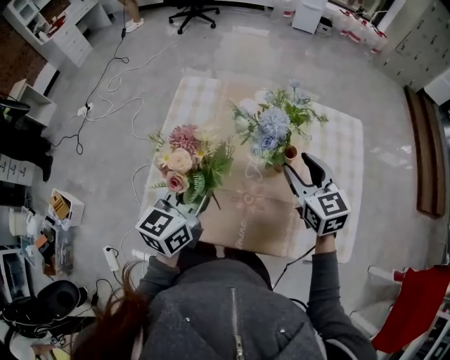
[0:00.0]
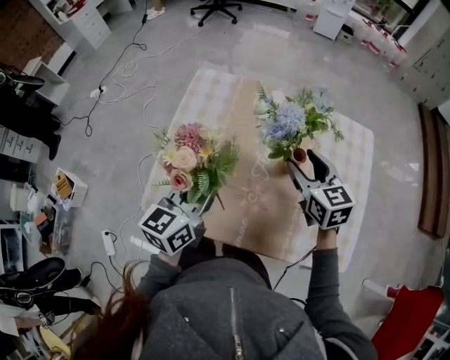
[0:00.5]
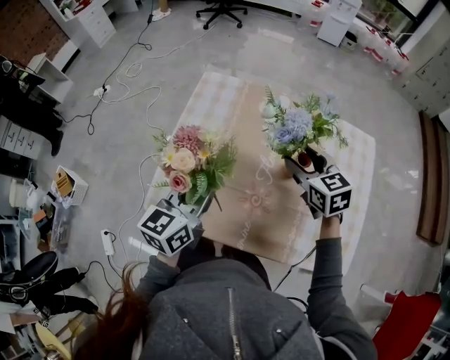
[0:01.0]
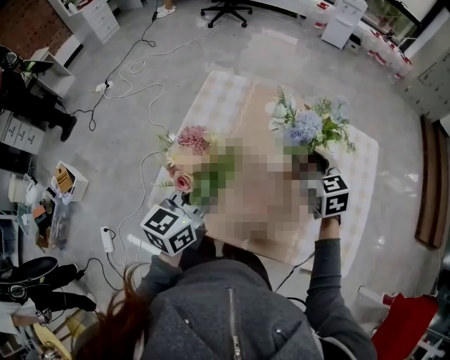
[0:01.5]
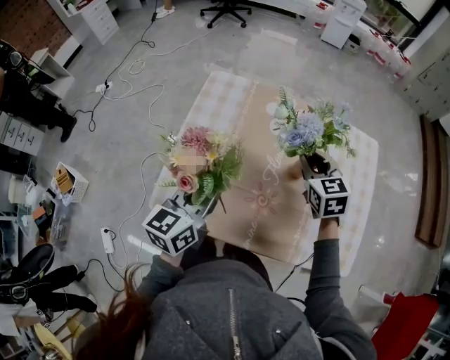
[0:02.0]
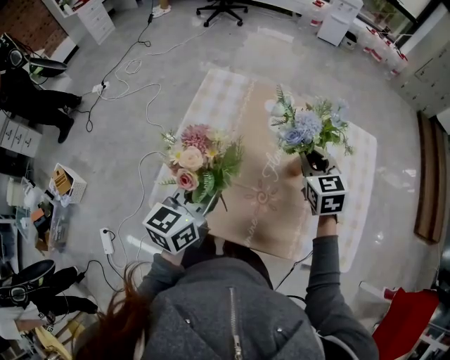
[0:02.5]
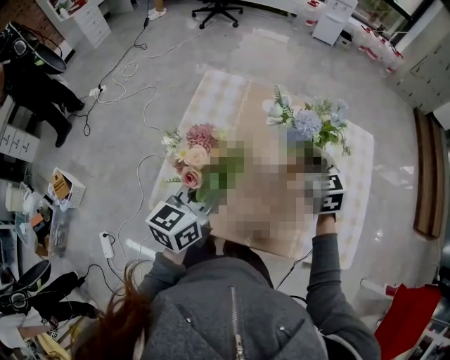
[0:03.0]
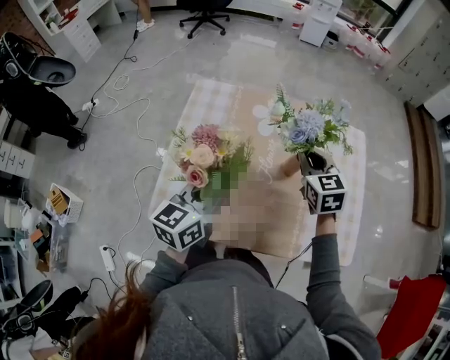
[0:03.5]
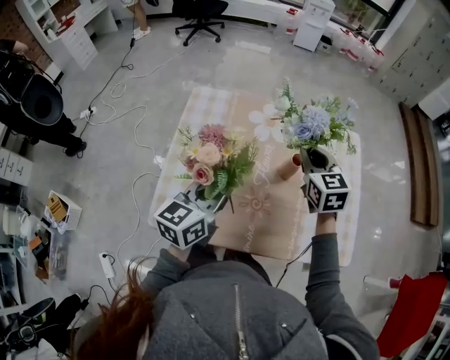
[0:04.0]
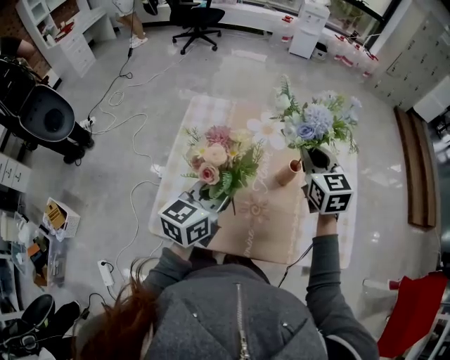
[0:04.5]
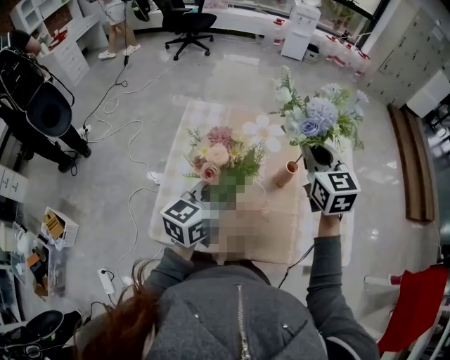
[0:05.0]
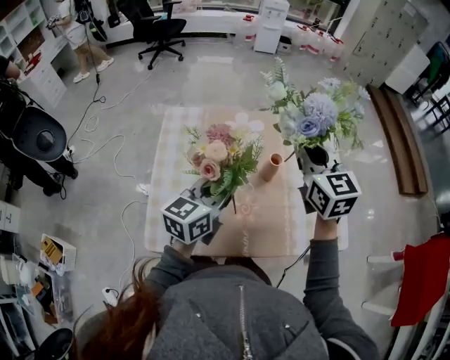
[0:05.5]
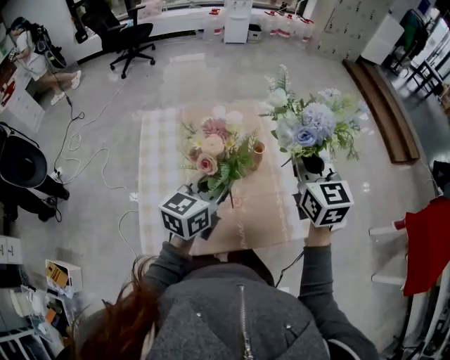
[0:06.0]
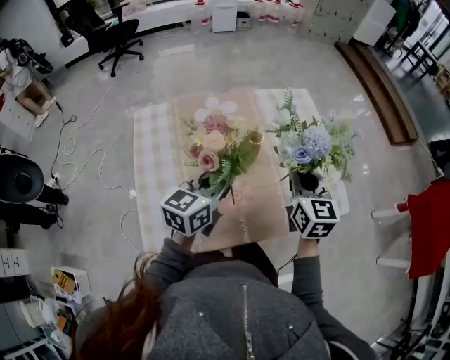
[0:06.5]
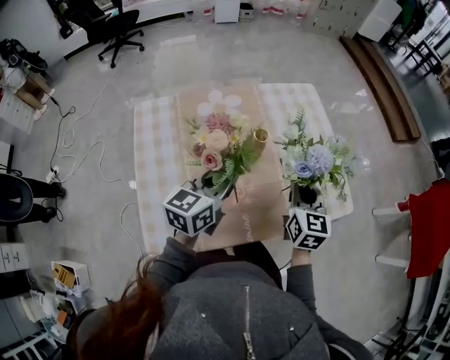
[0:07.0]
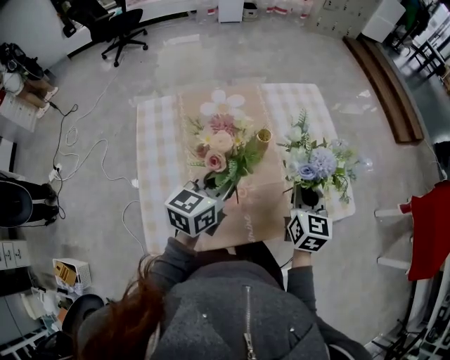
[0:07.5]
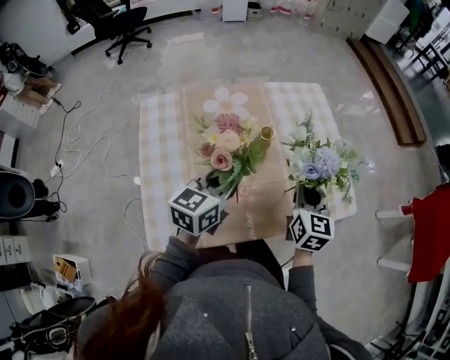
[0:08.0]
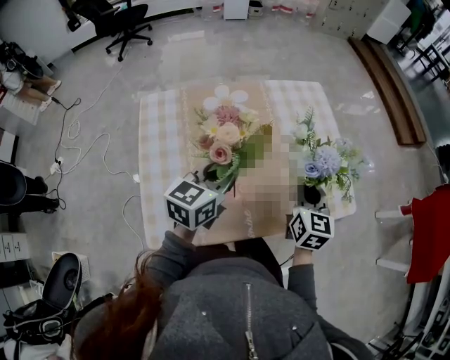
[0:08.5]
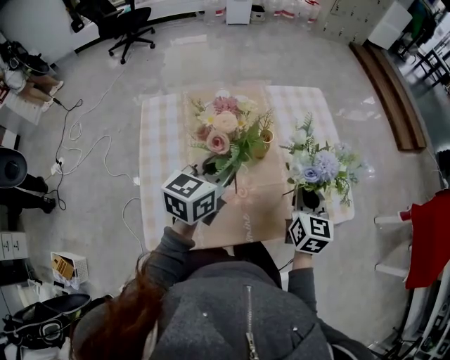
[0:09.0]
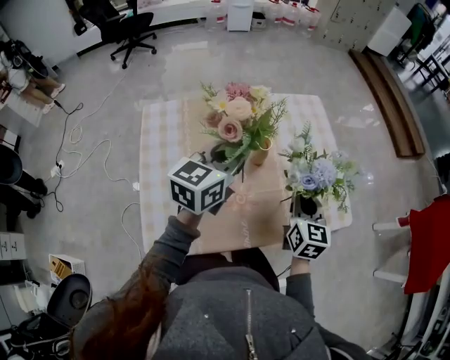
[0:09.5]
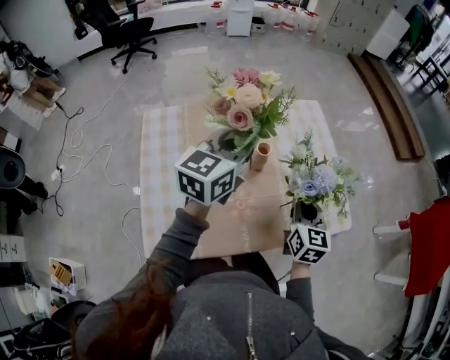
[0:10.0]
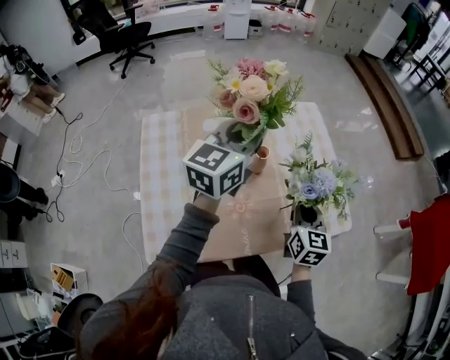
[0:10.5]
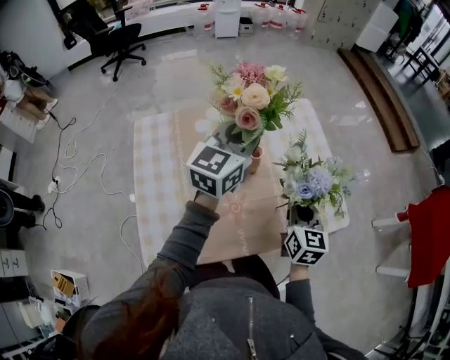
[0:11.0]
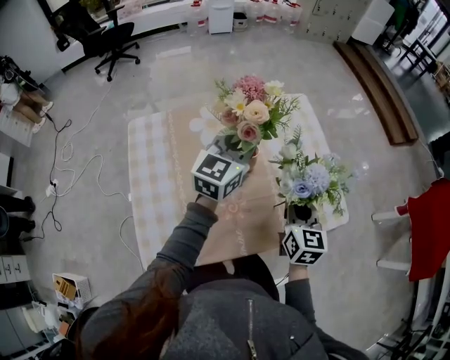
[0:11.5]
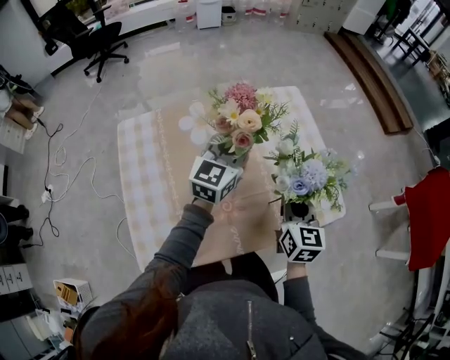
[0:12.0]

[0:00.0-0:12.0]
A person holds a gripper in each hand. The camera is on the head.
0:00.0 to 0:02.0: The right gripper shifts approximately 5 cm forward, and closes its fingers.
0:02.0 to 0:04.0: The right gripper moves about 5 cm.
0:04.0 to 0:06.0: The right gripper travels upward, backward and to the right by approximately 15 cm, and changes its angle by some 20 degrees. The left gripper heads to the right, covering about 10 cm.
0:06.0 to 0:08.0: The right gripper shifts approximately 15 cm downward and to the right, and rotates approximately 20 degrees.
0:08.0 to 0:10.0: The left gripper heads upward and forward, covering roughly 15 cm.
0:10.0 to 0:12.0: The left gripper goes about 10 cm downward and forward.

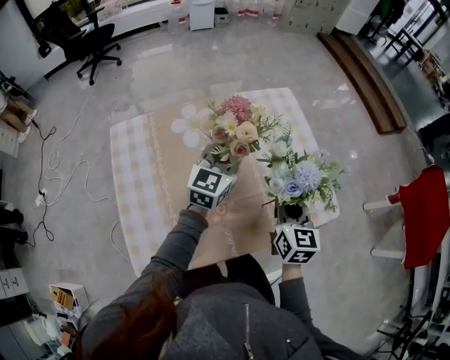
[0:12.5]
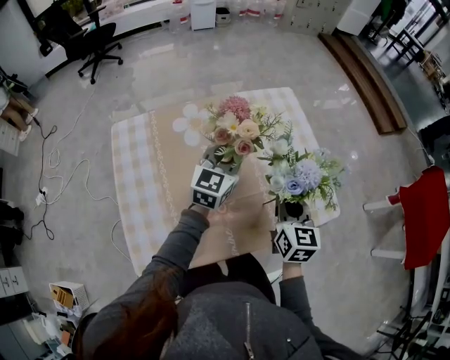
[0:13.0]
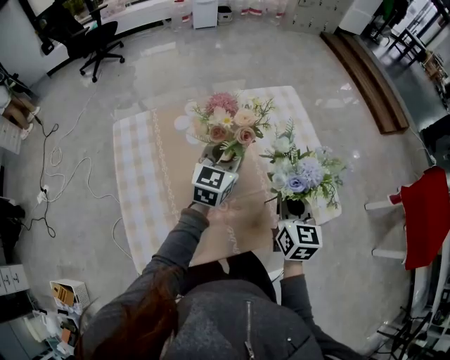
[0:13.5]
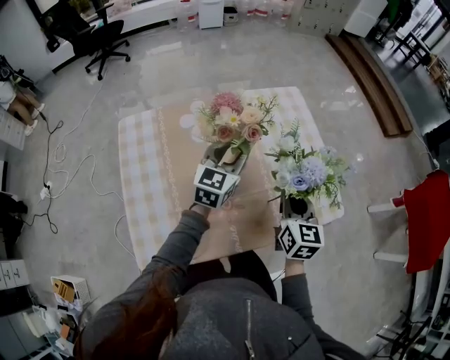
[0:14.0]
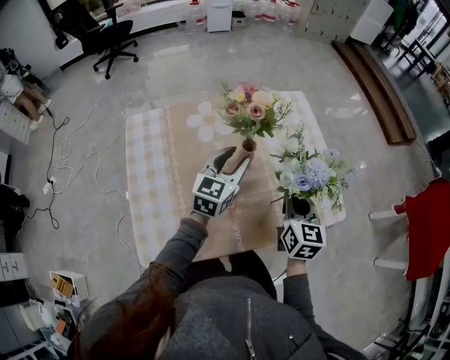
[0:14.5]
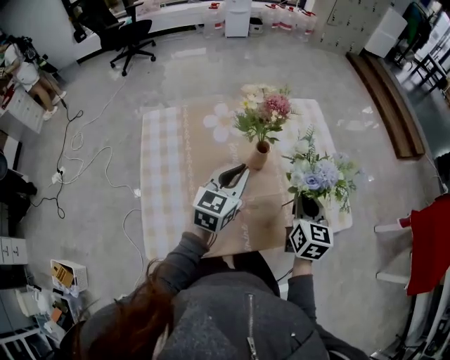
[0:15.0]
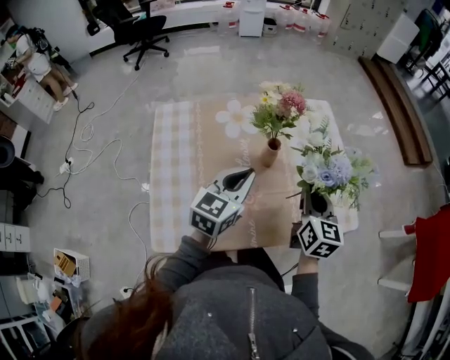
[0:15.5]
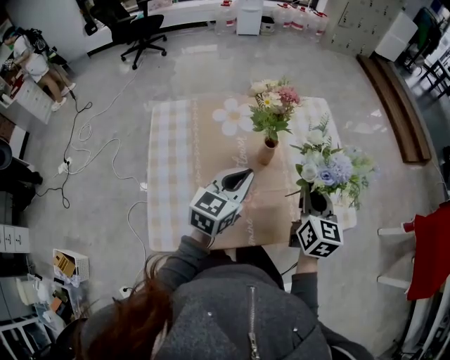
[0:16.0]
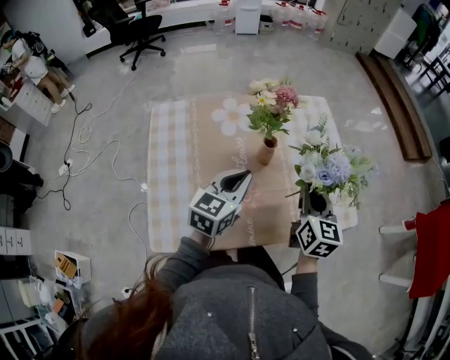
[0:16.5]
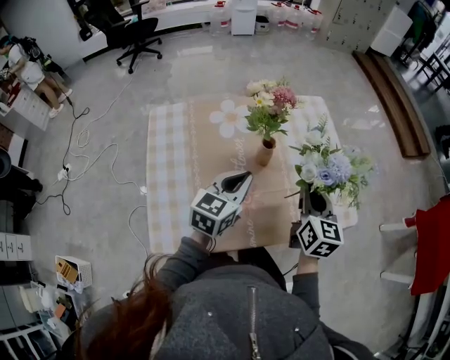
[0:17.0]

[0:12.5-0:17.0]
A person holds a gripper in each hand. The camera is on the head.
0:12.5 to 0:14.5: The left gripper moves roughly 5 cm, and opens its fingers.
0:14.5 to 0:17.0: The left gripper goes approximately 10 cm backward, and closes.

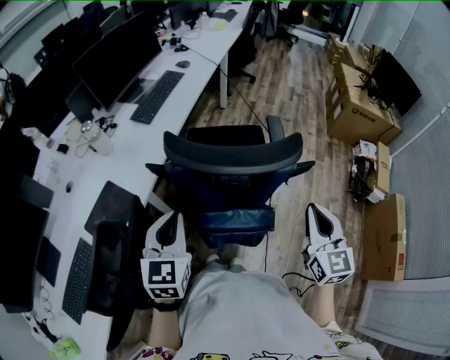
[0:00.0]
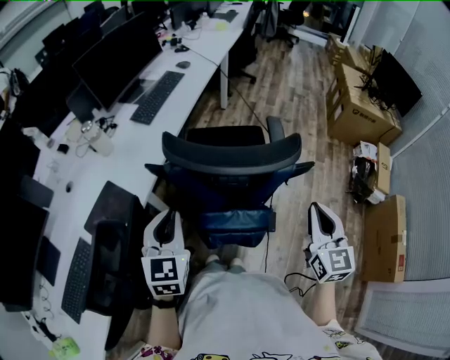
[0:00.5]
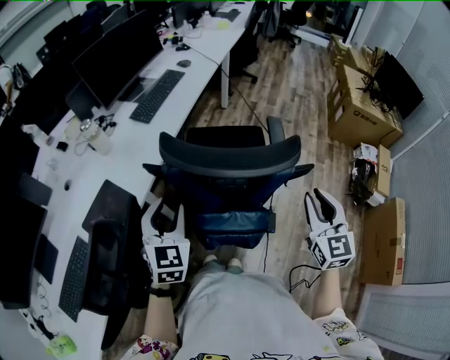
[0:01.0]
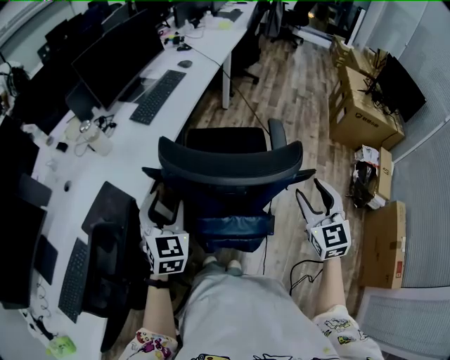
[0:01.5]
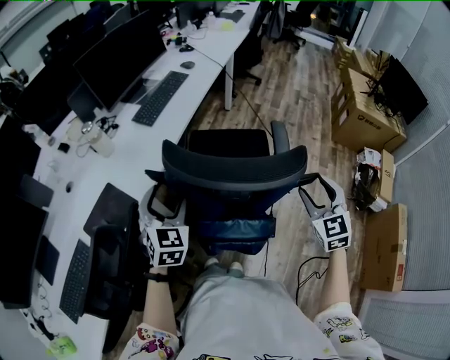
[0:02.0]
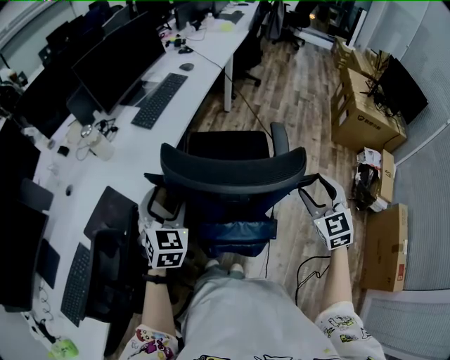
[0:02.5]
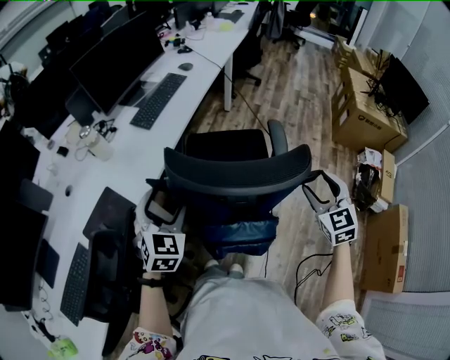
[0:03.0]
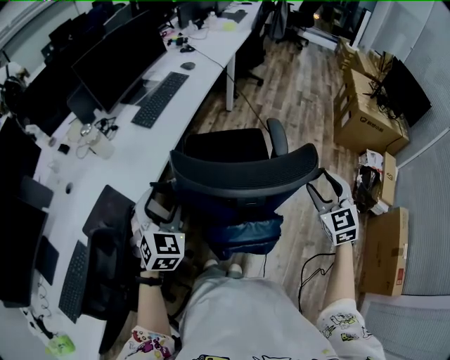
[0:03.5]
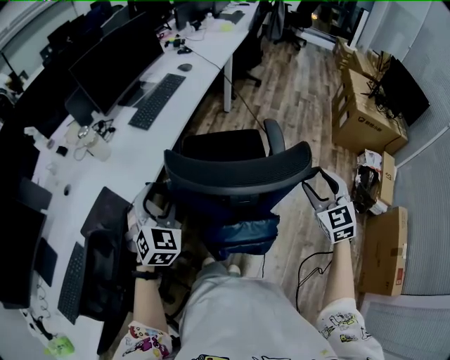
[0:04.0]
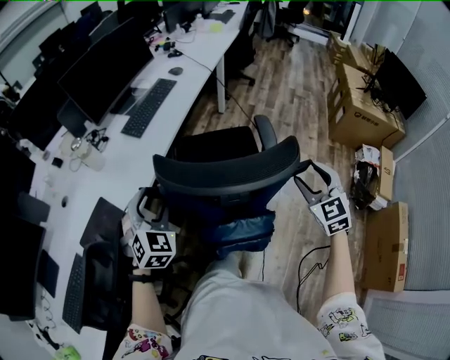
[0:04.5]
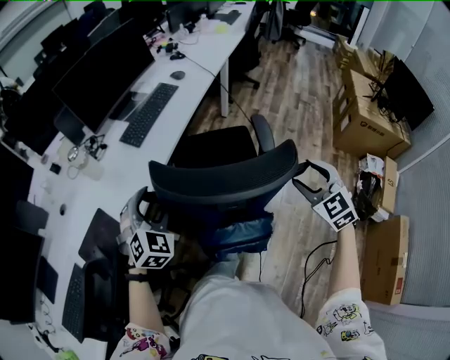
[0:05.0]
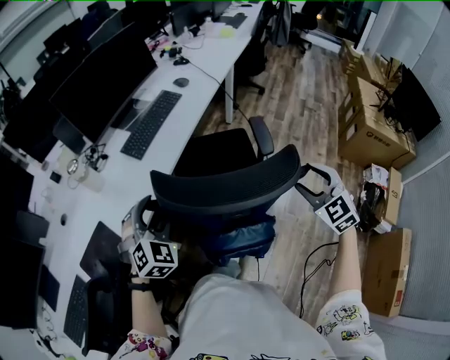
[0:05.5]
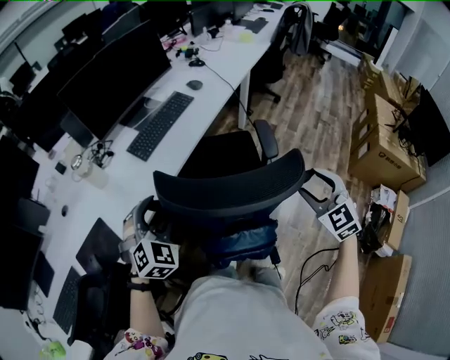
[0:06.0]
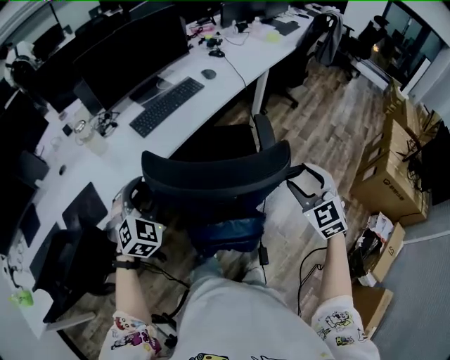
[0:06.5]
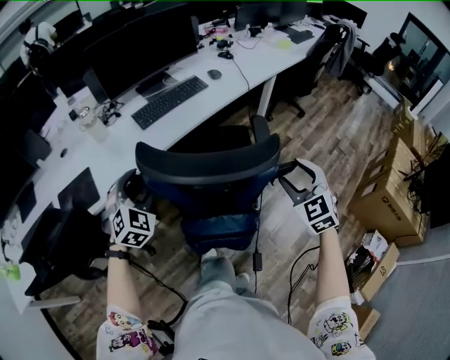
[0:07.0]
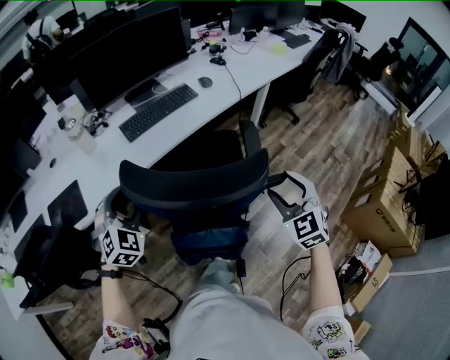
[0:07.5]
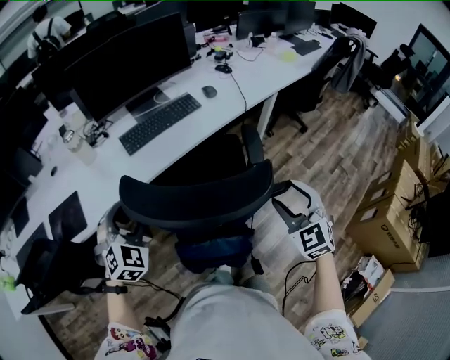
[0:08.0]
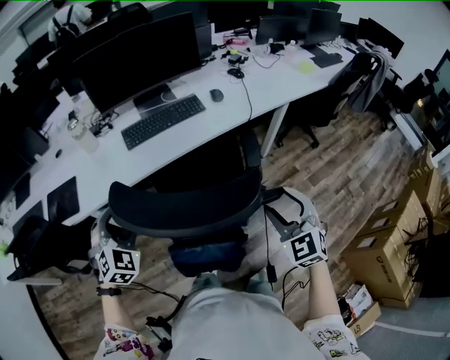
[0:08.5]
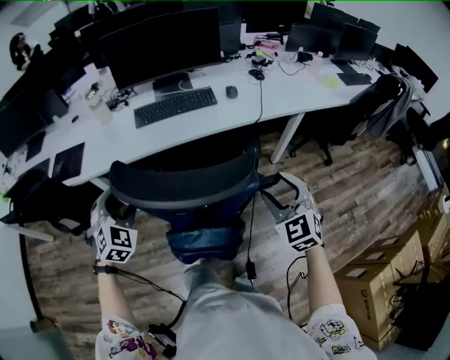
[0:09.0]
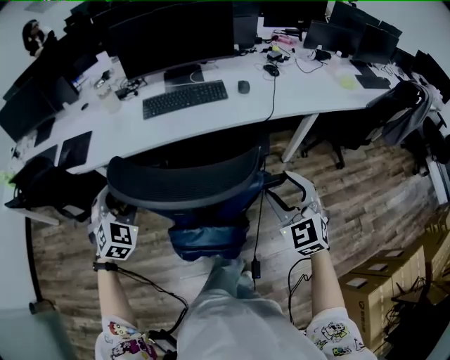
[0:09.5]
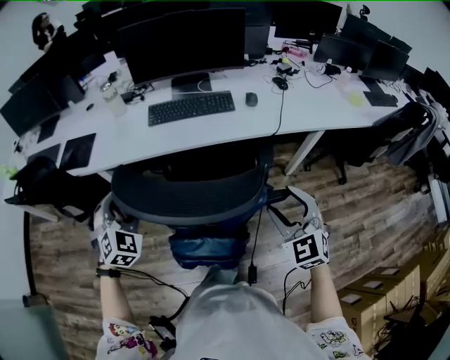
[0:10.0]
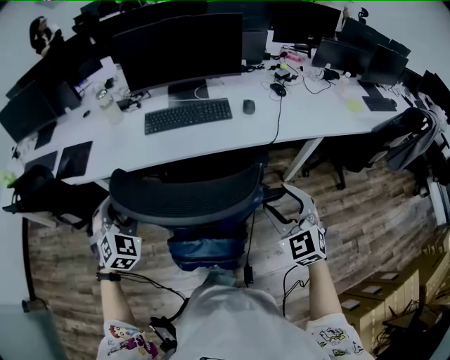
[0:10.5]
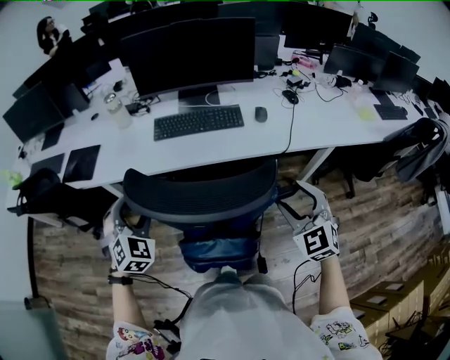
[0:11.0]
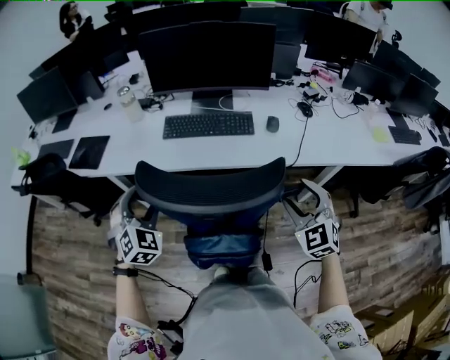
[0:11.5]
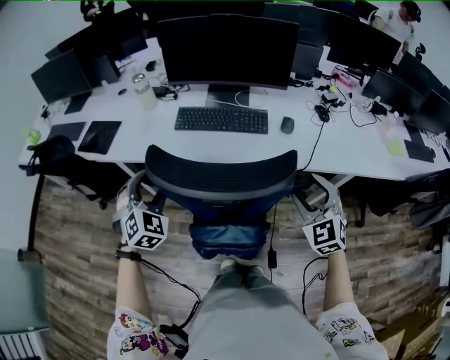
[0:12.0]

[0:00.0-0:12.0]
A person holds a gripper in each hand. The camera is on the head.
0:00.0 to 0:02.0: The two grippers go approximately 10 cm forward. The left gripper swivels some 20 degrees, and opens its fingers. Meanwhile the right gripper turns by about 30 degrees, and opens its fingers.
0:02.0 to 0:04.0: The grippers stay close to where they were, moving slightly.
0:04.0 to 0:06.0: The left gripper is displaced forward by about 15 cm. Meanwhile the right gripper shifts roughly 20 cm forward, and turns by roughly 20 degrees.
0:06.0 to 0:08.0: The left gripper moves to the right, some 5 cm, and turns by some 20 degrees. Meanwhile the right gripper moves forward and to the right, approximately 15 cm.
0:08.0 to 0:10.0: The right gripper moves about 15 cm, and swivels about 30 degrees, while the left gripper moves about 10 cm, and rotates some 30 degrees.
0:10.0 to 0:12.0: The left gripper moves forward and to the right, approximately 10 cm. Meanwhile the right gripper travels forward and to the right by about 20 cm.
